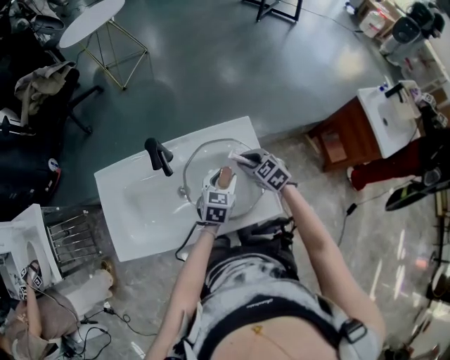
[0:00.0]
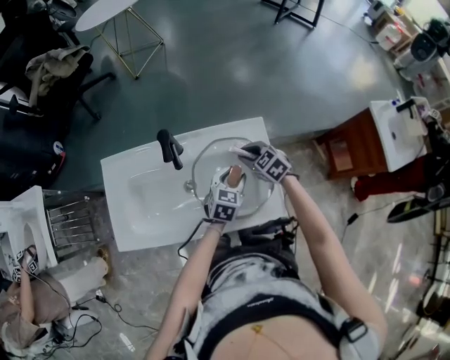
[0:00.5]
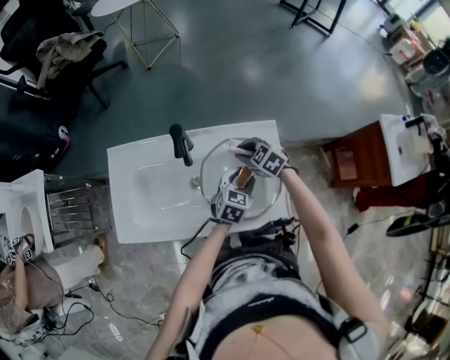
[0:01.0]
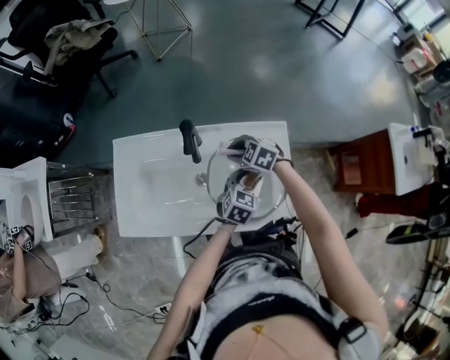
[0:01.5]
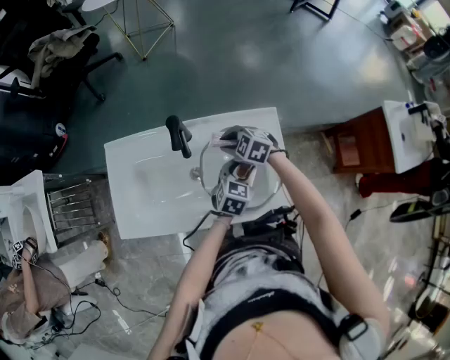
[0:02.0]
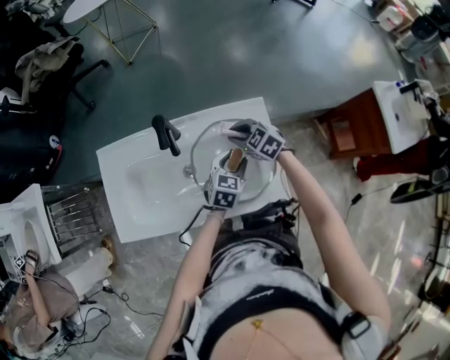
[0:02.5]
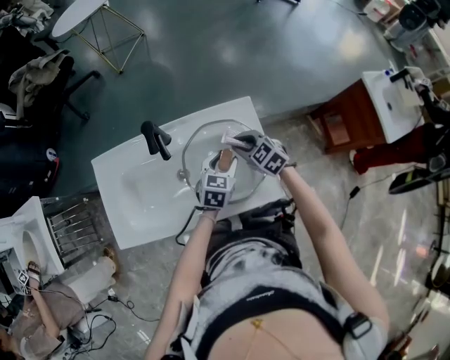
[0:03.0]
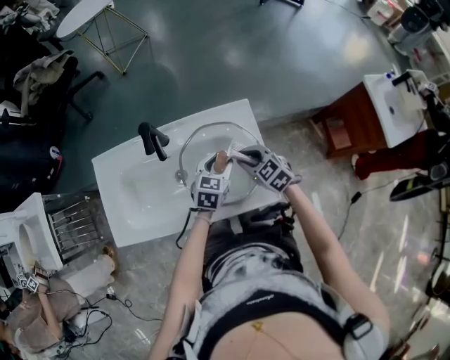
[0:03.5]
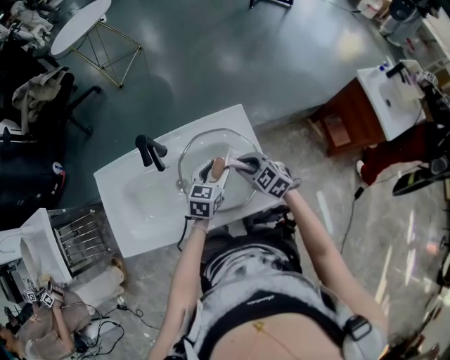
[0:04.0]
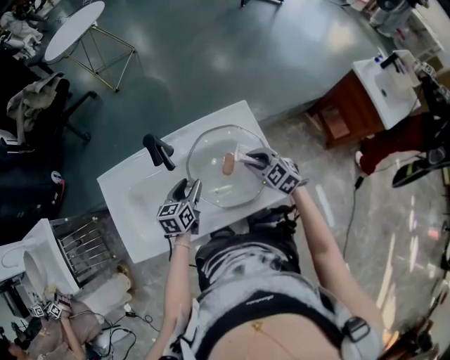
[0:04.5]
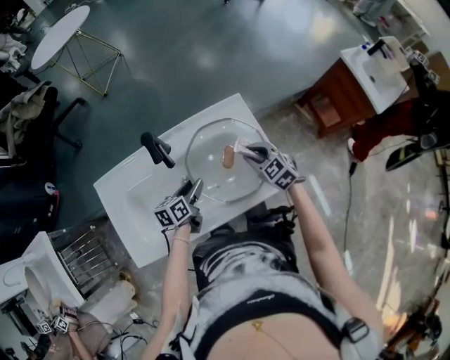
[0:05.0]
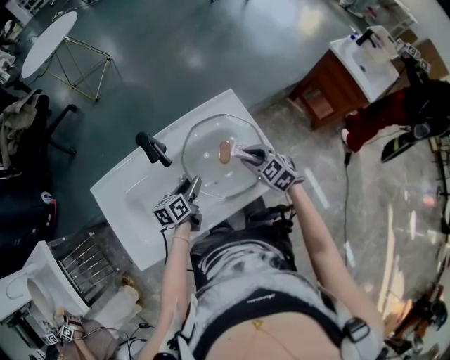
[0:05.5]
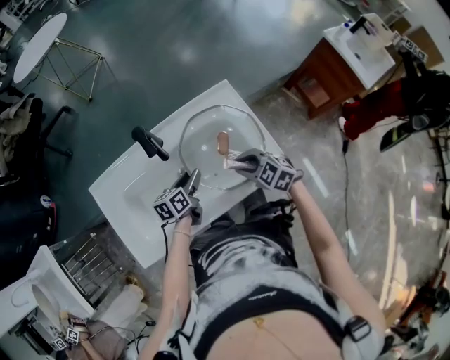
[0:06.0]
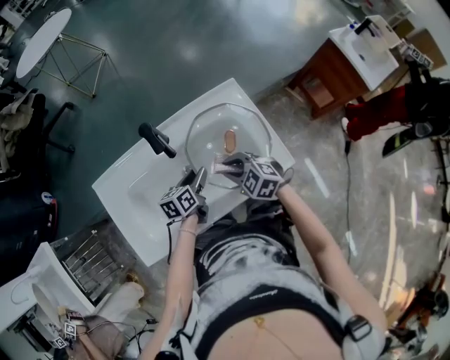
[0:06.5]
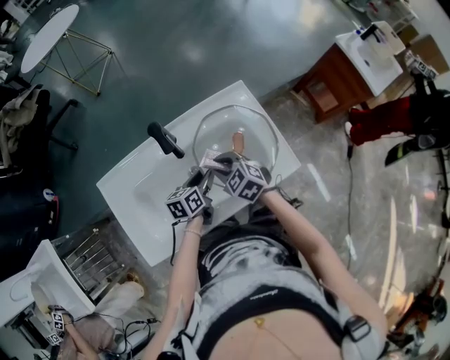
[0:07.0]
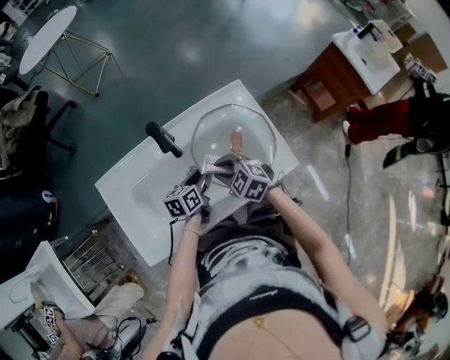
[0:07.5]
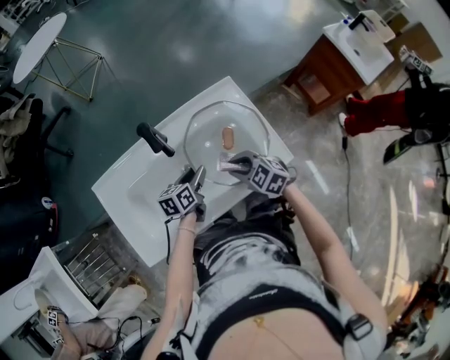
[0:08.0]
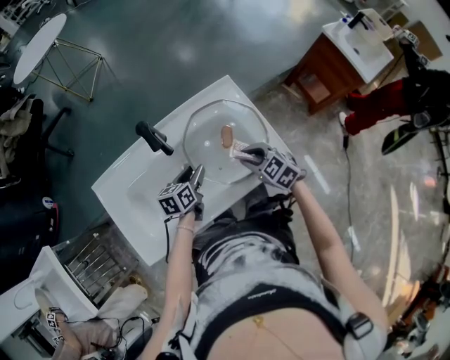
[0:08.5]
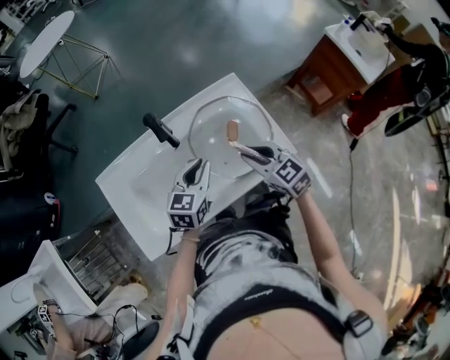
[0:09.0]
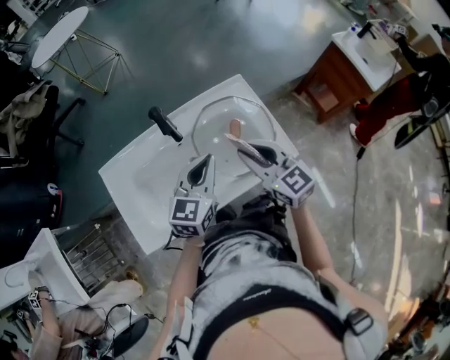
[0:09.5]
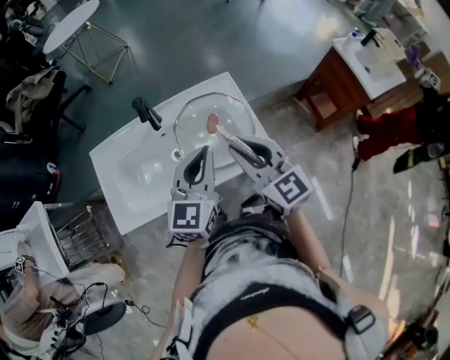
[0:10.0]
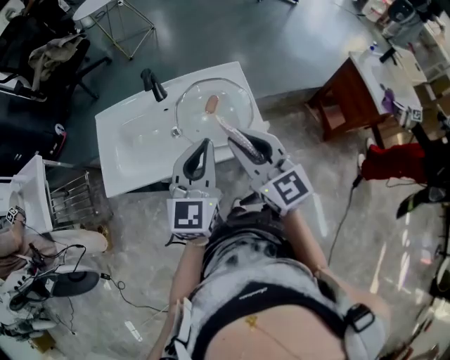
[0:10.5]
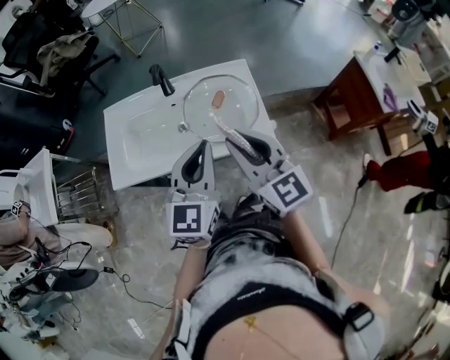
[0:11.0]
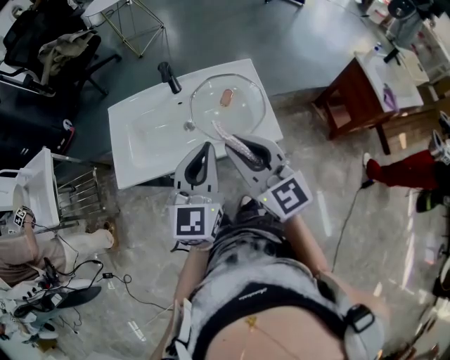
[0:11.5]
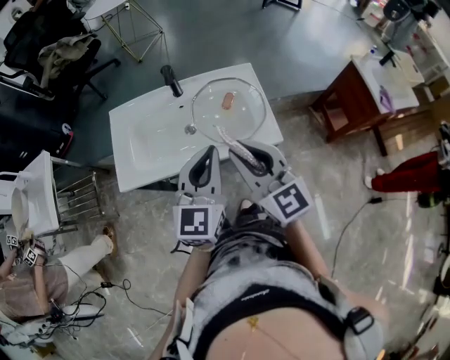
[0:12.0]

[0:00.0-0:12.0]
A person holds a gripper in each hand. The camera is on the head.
0:00.0 to 0:02.0: The right gripper moves to the left and forward, roughly 15 cm, and swivels about 30 degrees.
0:02.0 to 0:04.0: The right gripper moves to the right and backward, about 15 cm, and changes its angle by approximately 30 degrees.
0:04.0 to 0:06.0: The right gripper heads backward and to the left, covering roughly 10 cm, while the left gripper goes roughly 15 cm to the left and downward, and swivels approximately 30 degrees.
0:08.0 to 0:10.0: The right gripper goes some 25 cm upward, and tips its fingers upward by roughly 40 degrees. The left gripper travels upward and to the right by about 30 cm, rotates some 50 degrees, and closes.
0:10.0 to 0:12.0: The right gripper shifts approximately 15 cm backward, to the left and upward. The left gripper goes about 10 cm backward.

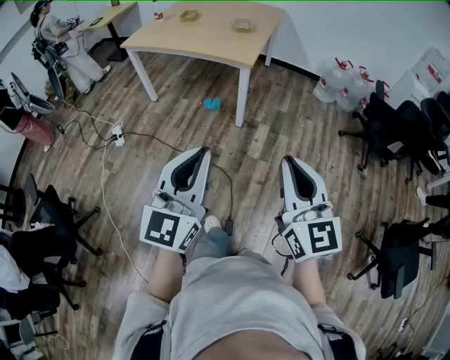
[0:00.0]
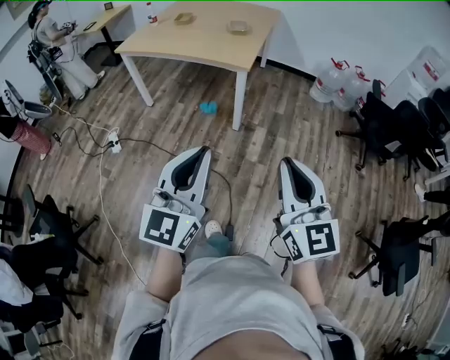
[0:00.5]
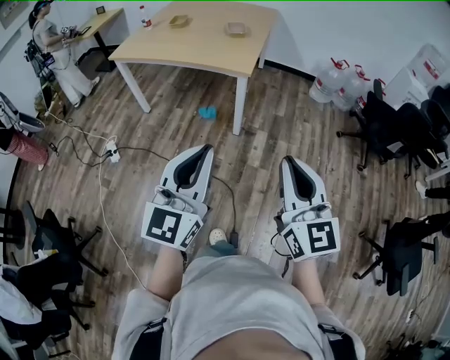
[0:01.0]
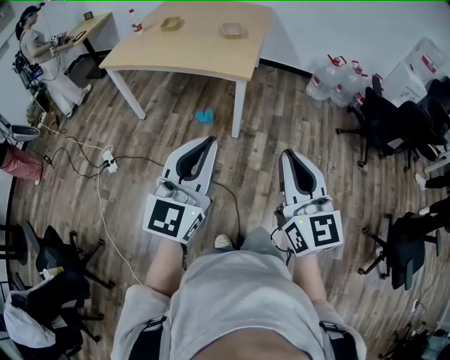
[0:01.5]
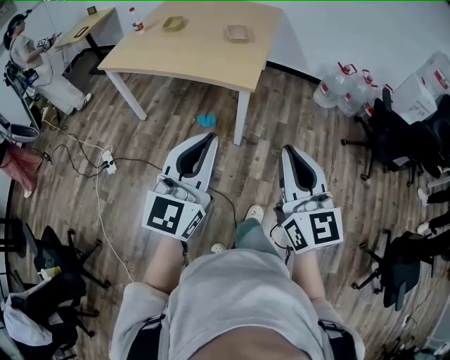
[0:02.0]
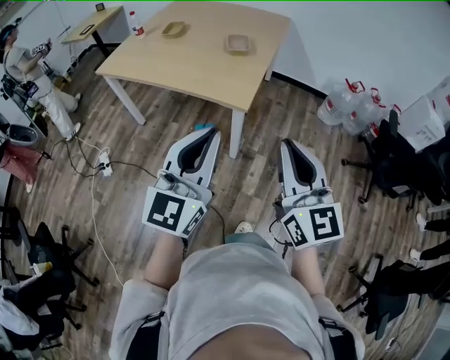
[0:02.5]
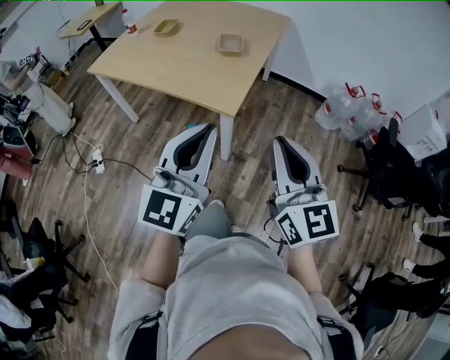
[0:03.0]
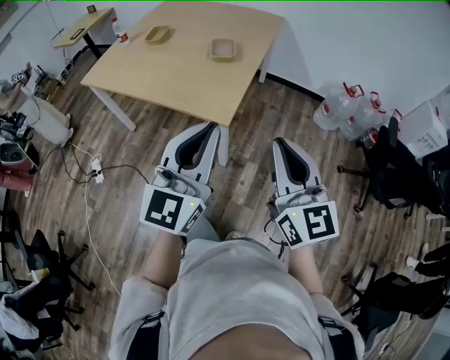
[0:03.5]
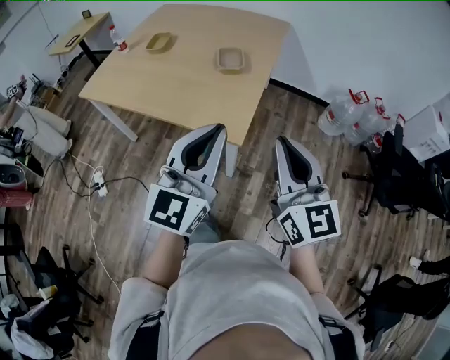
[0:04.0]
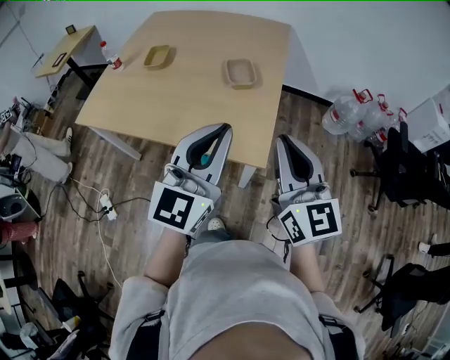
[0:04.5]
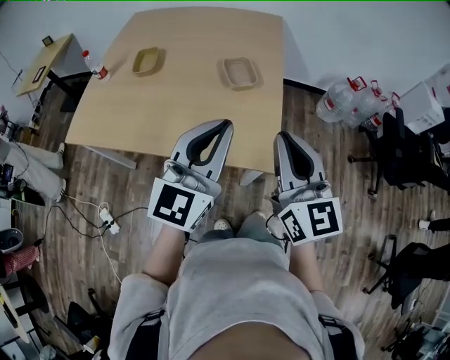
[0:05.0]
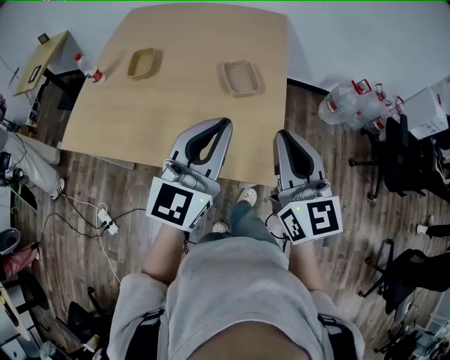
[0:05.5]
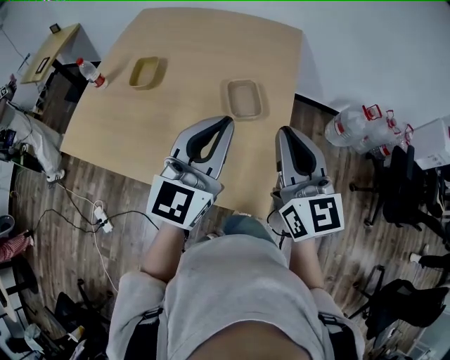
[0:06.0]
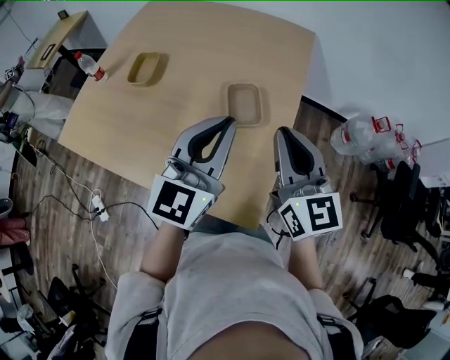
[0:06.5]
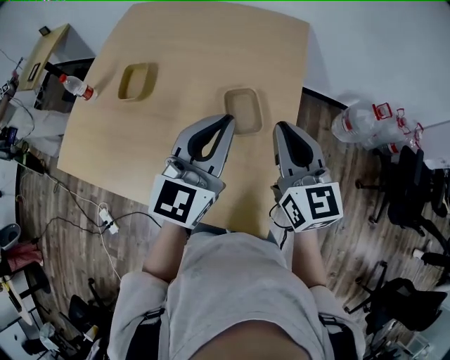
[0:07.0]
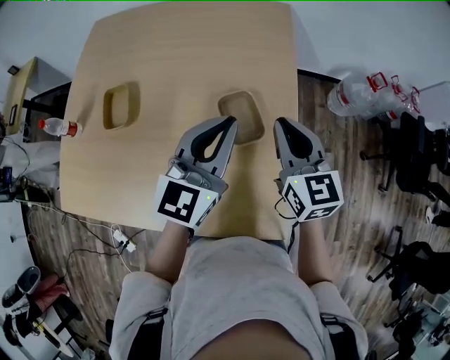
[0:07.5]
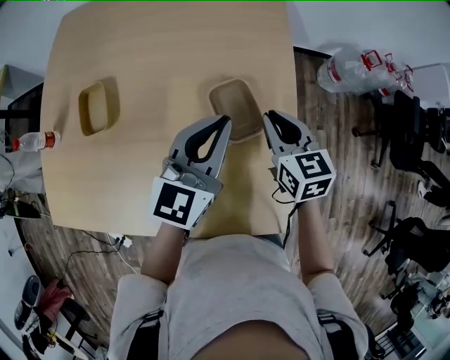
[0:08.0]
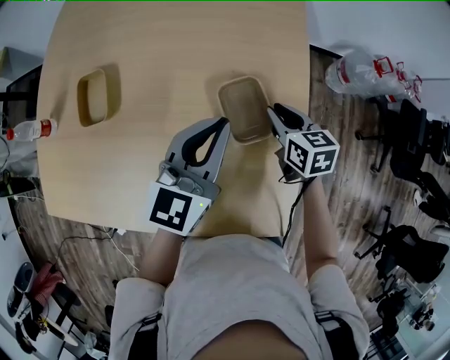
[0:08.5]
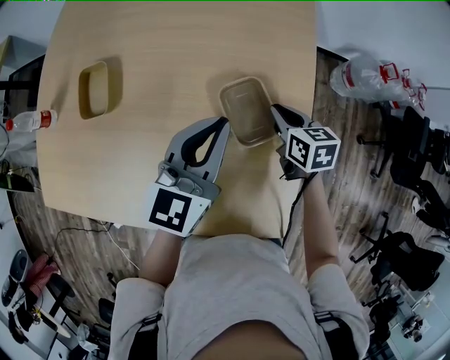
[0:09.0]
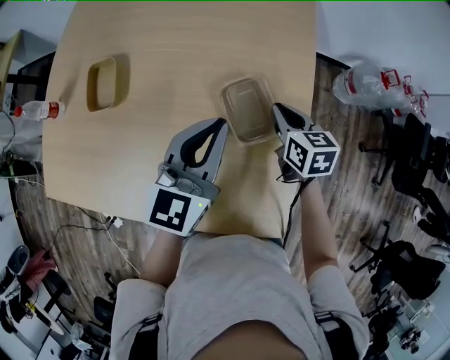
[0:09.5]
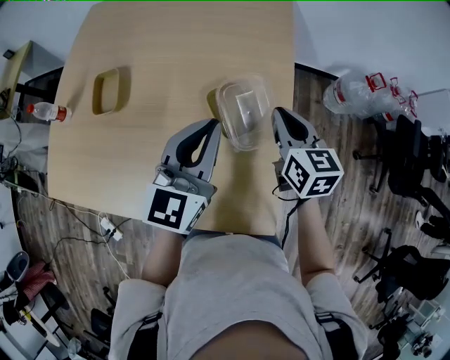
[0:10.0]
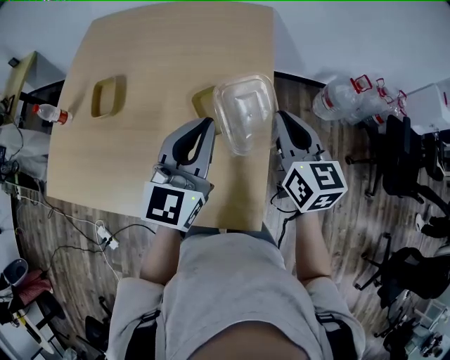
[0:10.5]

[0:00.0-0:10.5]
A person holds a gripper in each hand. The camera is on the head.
0:00.0 to 0:02.0: The two grippers go about 25 cm forward.
0:02.0 to 0:04.0: Both grippers move forward, some 30 cm.
0:04.0 to 0:06.5: The grippers both shift forward by roughly 35 cm.
0:06.5 to 0:08.5: The left gripper goes roughly 20 cm forward and downward, and rotates some 20 degrees. Meanwhile the right gripper is displaced downward and forward by some 30 cm, and tilts its fingers approximately 40 degrees downward.
0:08.5 to 0:10.5: The right gripper goes some 25 cm upward, backward and to the right, and turns by some 30 degrees. Meanwhile the left gripper shifts about 15 cm backward, upward and to the right.

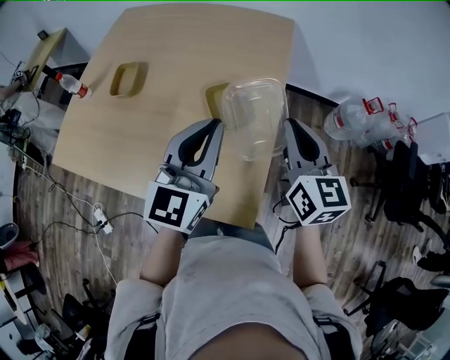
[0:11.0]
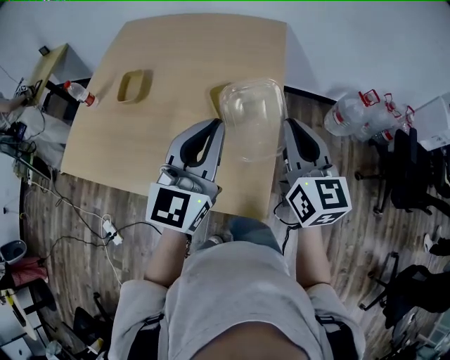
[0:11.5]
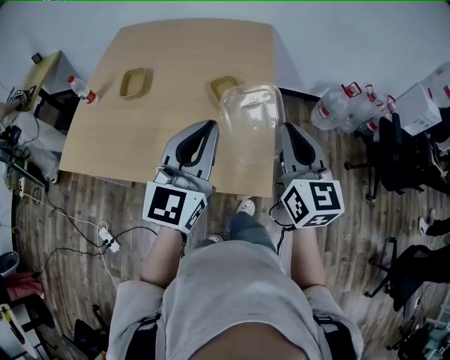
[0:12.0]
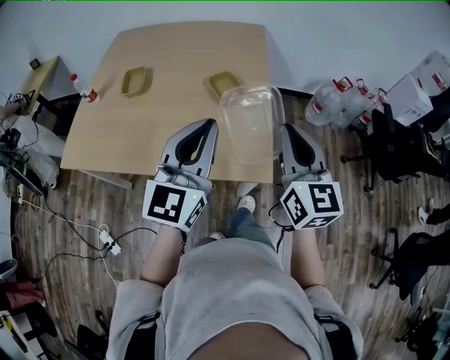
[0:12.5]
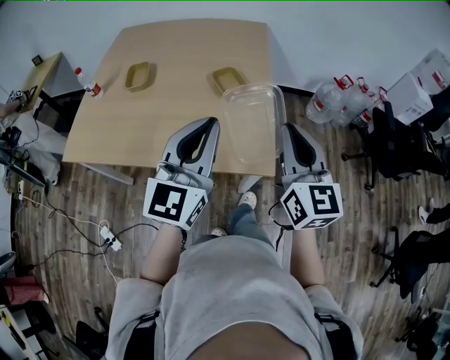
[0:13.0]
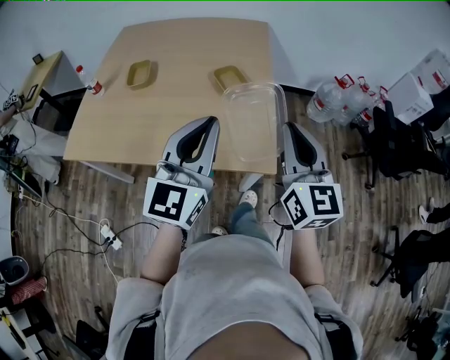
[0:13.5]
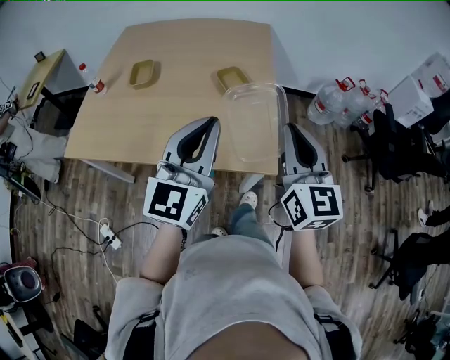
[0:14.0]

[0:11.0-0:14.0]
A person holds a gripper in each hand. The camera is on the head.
0:11.0 to 0:12.5: Both grippers travel together backward, roughly 20 cm.
0:12.5 to 0:14.0: There are only small adjustments of the grippers.

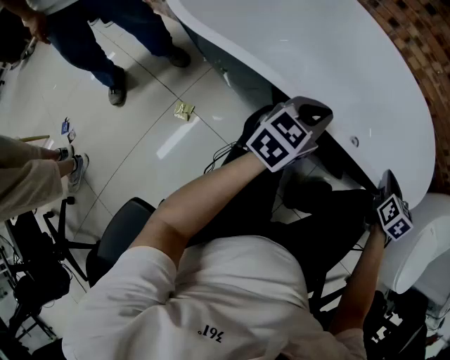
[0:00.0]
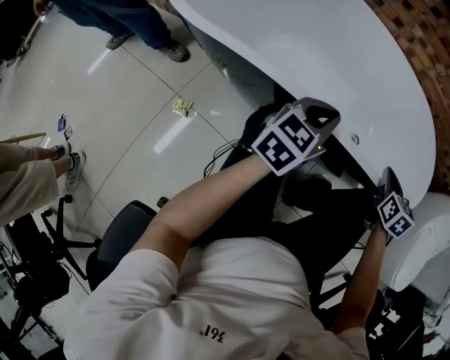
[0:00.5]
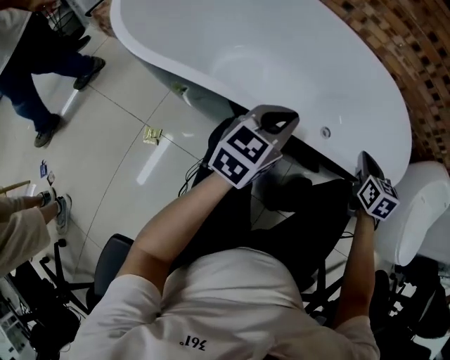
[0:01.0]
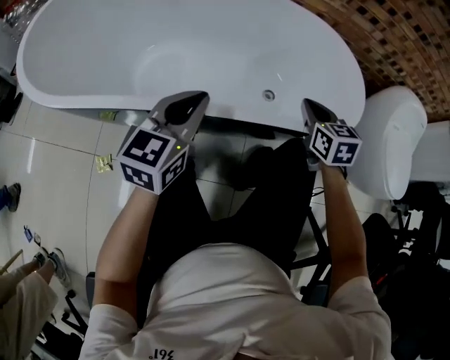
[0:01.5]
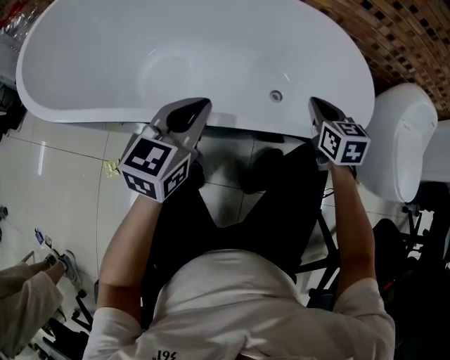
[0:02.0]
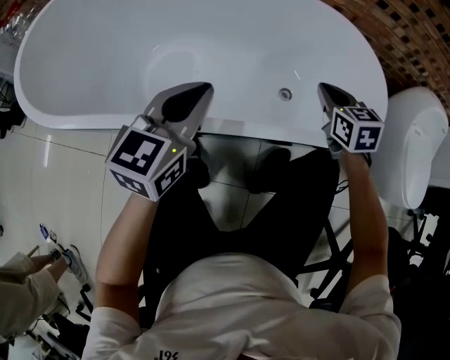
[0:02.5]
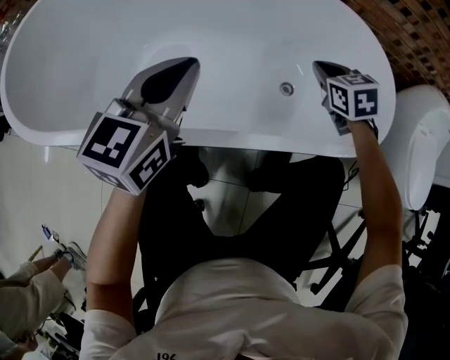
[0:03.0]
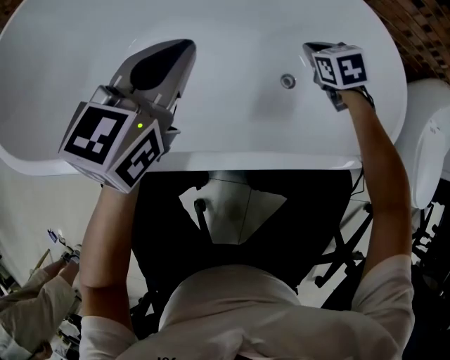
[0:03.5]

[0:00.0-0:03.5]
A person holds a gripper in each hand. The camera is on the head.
0:00.0 to 0:02.0: The grippers move only a little.
0:02.0 to 0:03.5: The right gripper is displaced forward and downward by approximately 25 cm, and changes its angle by roughly 20 degrees. The left gripper shifts roughly 15 cm forward.
